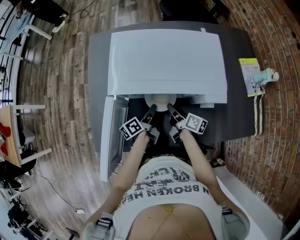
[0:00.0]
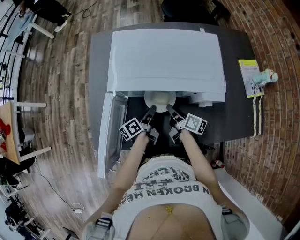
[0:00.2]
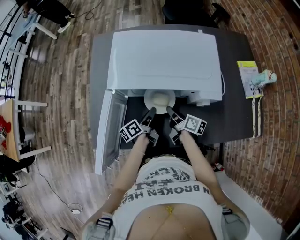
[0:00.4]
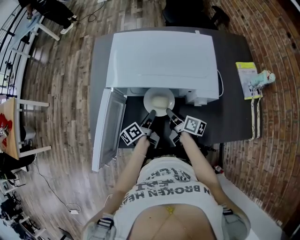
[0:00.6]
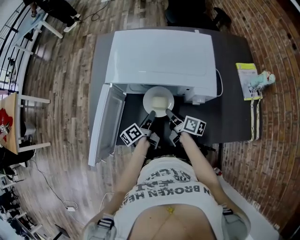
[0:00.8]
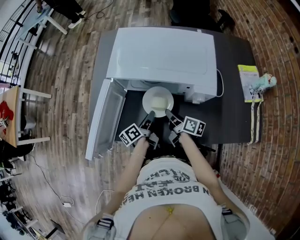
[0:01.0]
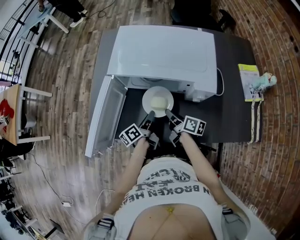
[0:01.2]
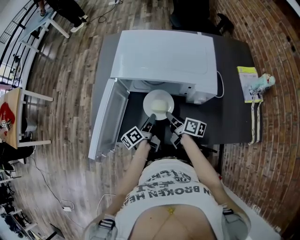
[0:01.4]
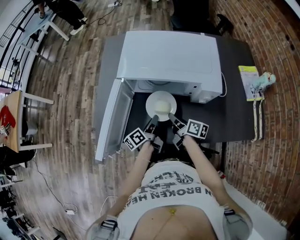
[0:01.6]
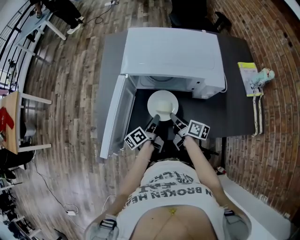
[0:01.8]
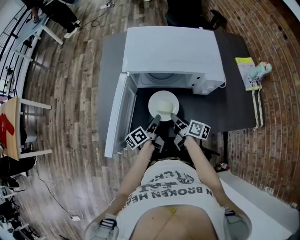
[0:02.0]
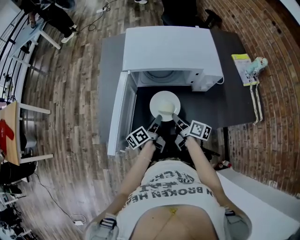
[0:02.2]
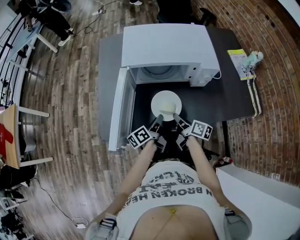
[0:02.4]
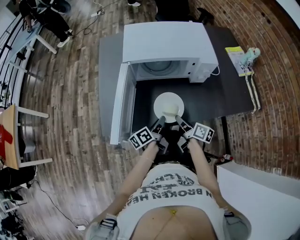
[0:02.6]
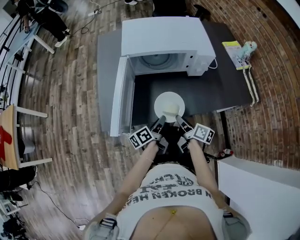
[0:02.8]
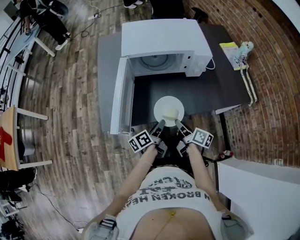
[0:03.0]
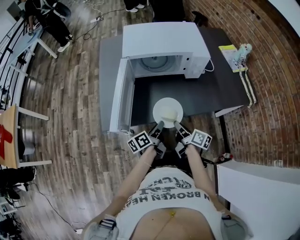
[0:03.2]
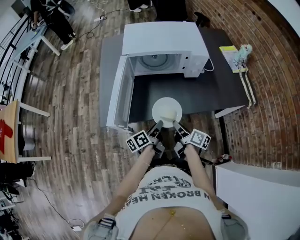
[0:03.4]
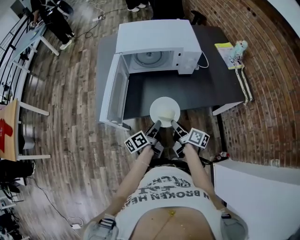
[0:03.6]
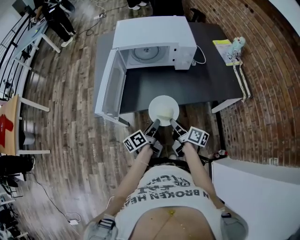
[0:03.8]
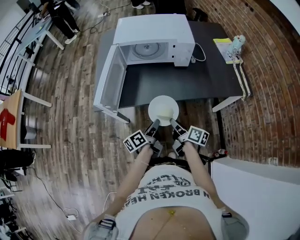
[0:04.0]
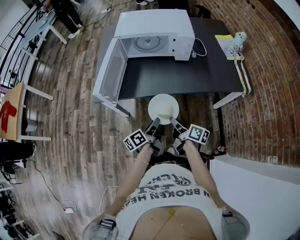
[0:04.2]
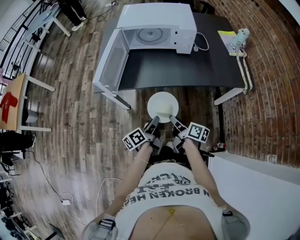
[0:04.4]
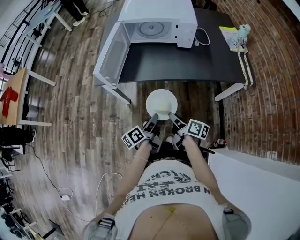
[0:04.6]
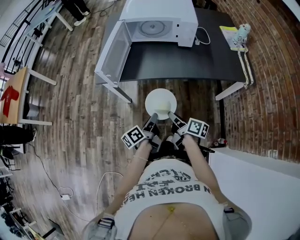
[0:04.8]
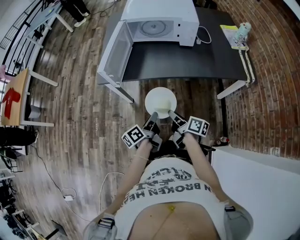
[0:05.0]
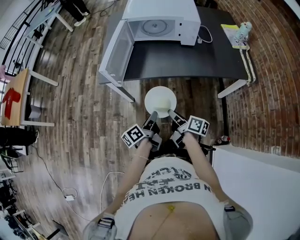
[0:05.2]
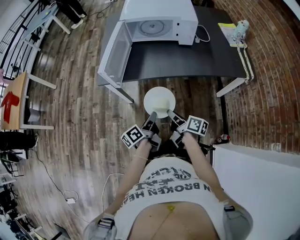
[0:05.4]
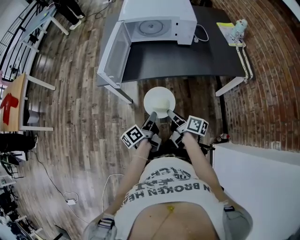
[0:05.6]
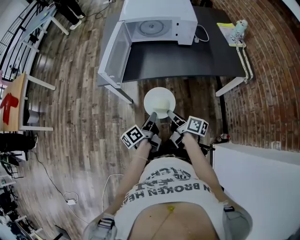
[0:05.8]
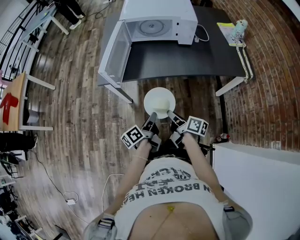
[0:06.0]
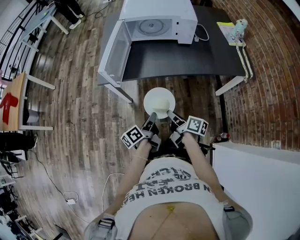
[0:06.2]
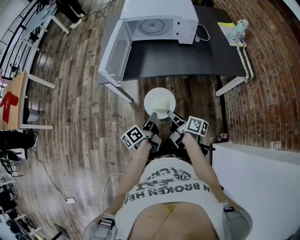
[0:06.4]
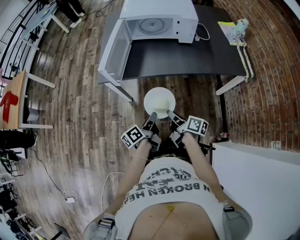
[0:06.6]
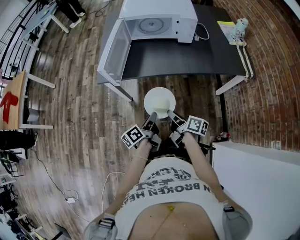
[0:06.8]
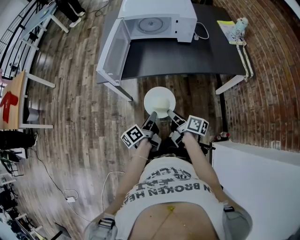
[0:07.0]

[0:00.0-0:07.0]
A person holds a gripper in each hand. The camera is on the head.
0:00.0 to 0:01.4: Both grippers travel together backward, some 10 cm.
0:01.4 to 0:02.8: The grippers both shift backward by roughly 15 cm.
0:02.8 to 0:04.2: Both grippers travel together backward and to the right, roughly 20 cm.
0:04.2 to 0:05.6: Both grippers travel together backward and to the left, roughly 10 cm.
0:05.6 to 0:07.0: Both grippers stay about where they are.

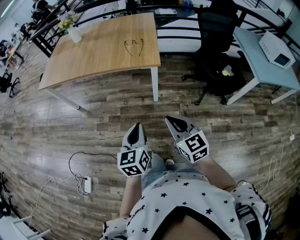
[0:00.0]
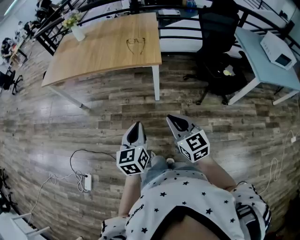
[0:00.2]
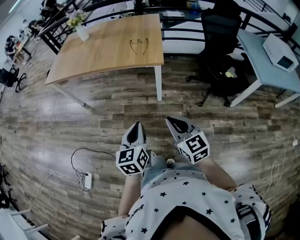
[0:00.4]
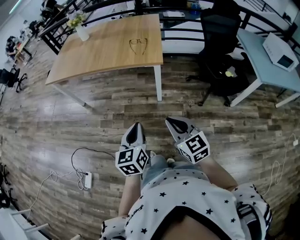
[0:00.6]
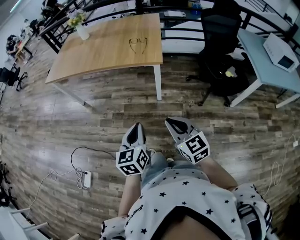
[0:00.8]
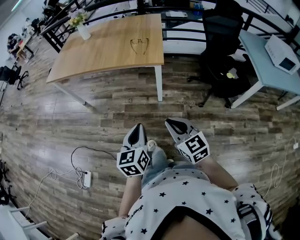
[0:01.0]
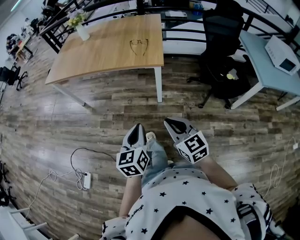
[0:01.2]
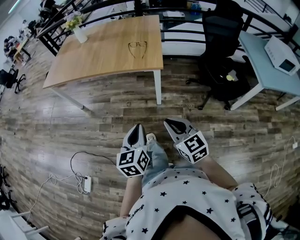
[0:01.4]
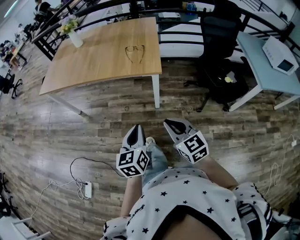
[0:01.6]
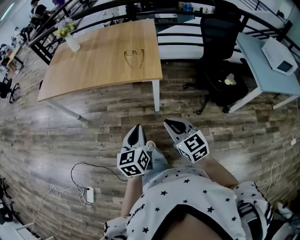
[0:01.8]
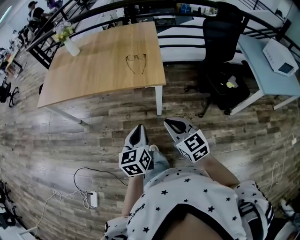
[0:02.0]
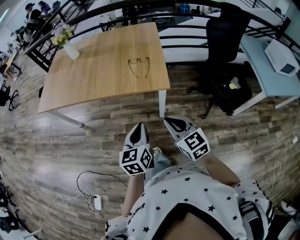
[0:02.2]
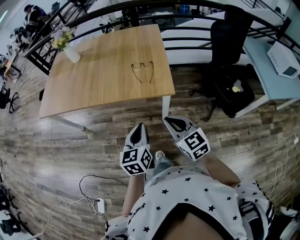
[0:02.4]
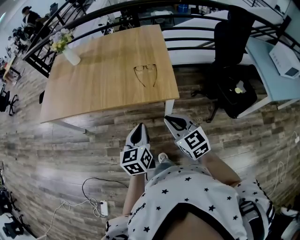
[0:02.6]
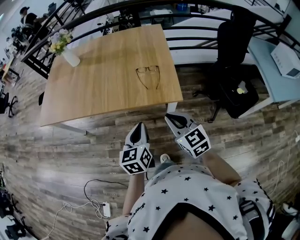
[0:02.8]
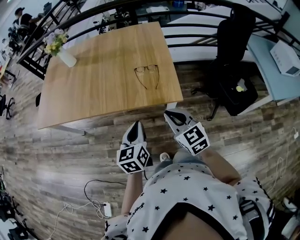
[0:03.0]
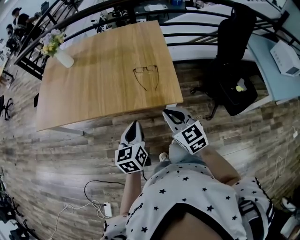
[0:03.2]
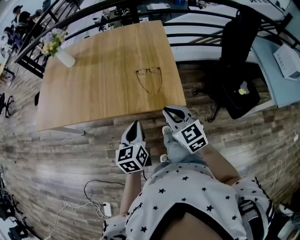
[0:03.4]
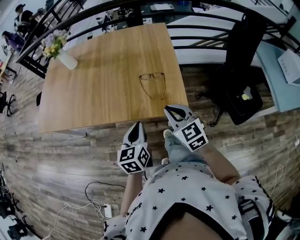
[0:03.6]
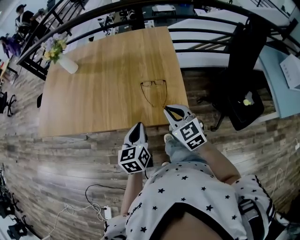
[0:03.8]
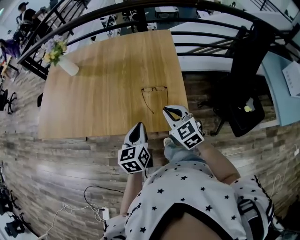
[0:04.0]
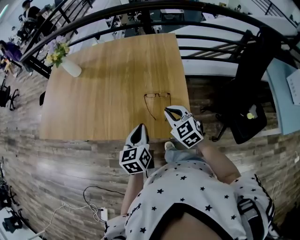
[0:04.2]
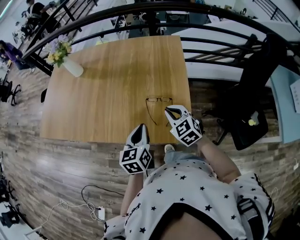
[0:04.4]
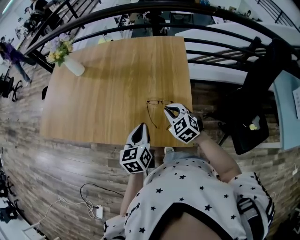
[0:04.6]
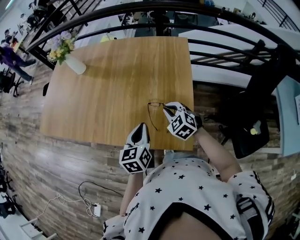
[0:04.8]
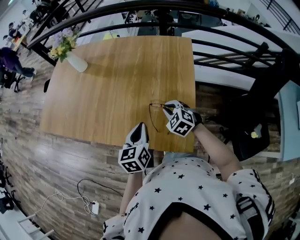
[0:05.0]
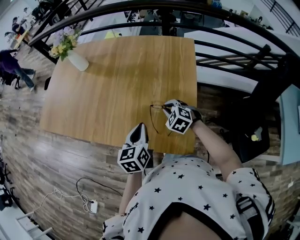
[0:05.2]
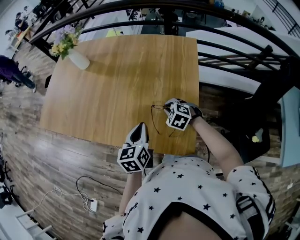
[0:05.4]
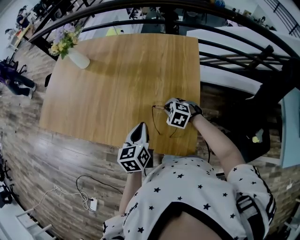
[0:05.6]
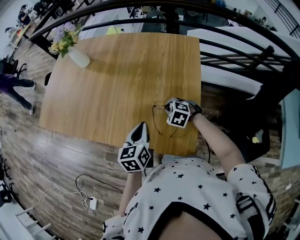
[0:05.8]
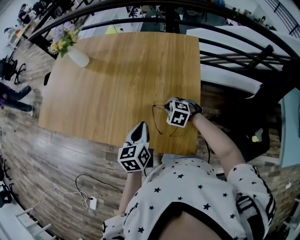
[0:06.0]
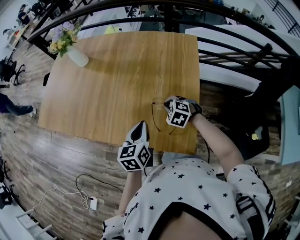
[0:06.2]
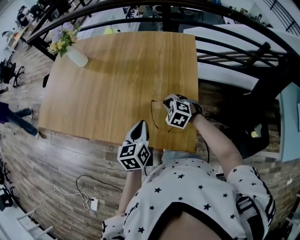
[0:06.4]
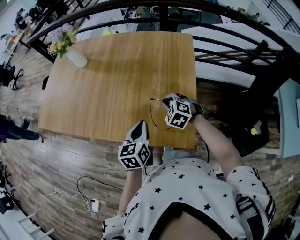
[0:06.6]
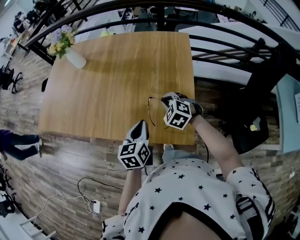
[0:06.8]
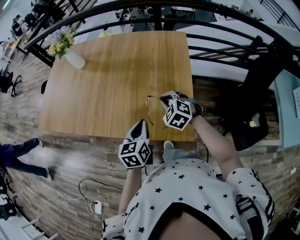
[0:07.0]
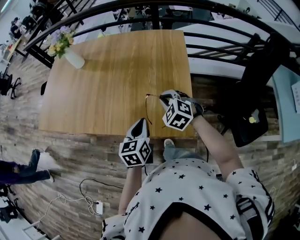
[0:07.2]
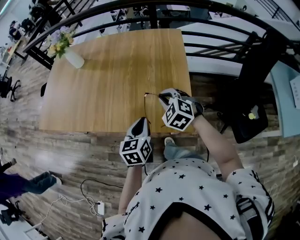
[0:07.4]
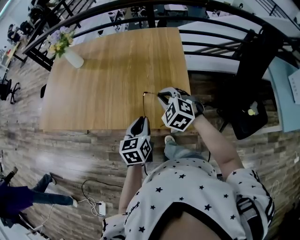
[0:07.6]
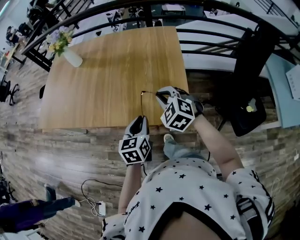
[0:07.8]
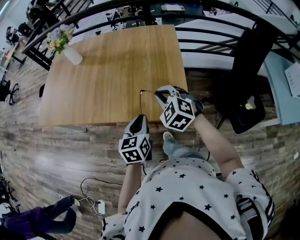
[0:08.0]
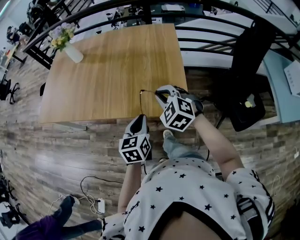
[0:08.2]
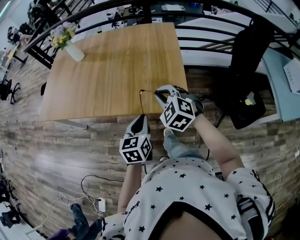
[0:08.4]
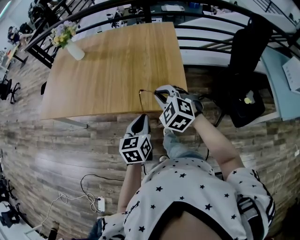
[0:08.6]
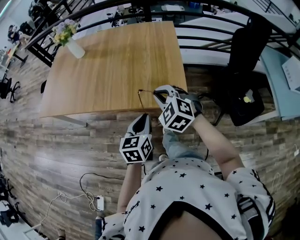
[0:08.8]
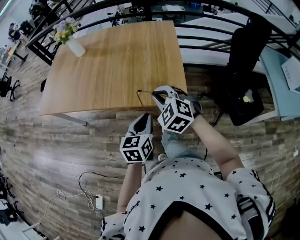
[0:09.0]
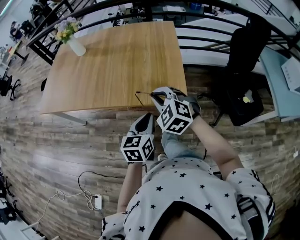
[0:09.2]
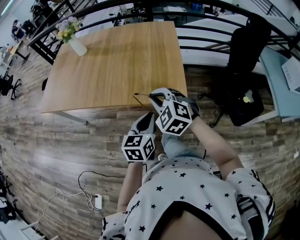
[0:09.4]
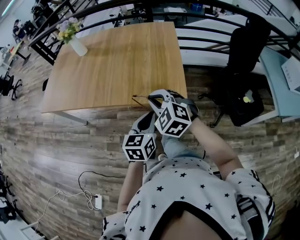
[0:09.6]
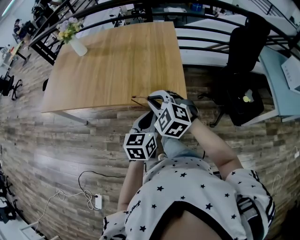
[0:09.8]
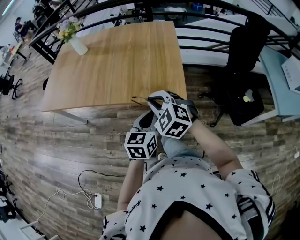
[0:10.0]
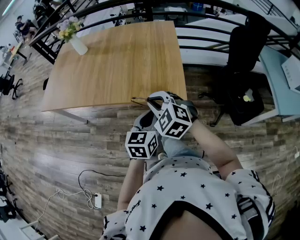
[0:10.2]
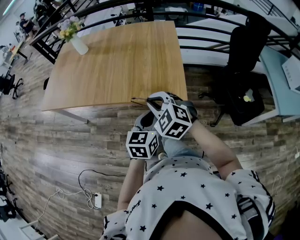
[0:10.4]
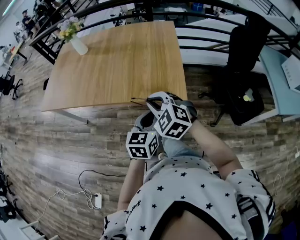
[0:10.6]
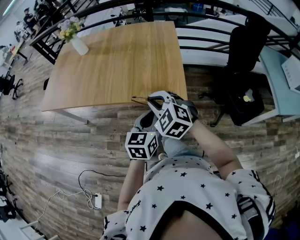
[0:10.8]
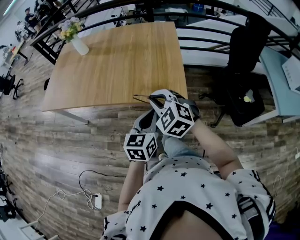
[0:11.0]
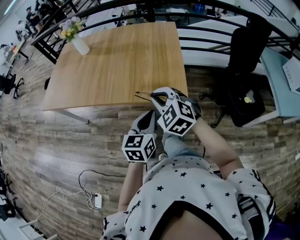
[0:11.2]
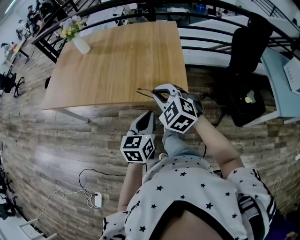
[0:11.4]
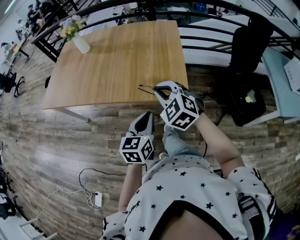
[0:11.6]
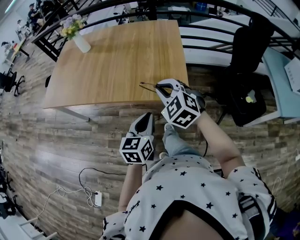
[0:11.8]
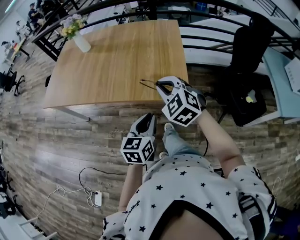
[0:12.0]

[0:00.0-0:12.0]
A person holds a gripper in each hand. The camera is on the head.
0:00.0 to 0:01.6: The left gripper shifts some 5 cm forward.
0:01.6 to 0:03.0: The grippers both shift forward by approximately 30 cm.
0:03.0 to 0:04.4: The two grippers go roughly 25 cm forward.
0:04.4 to 0:06.0: The right gripper heads downward and forward, covering roughly 15 cm, and rotates roughly 40 degrees. The left gripper is displaced forward by roughly 5 cm.
0:06.0 to 0:07.6: The left gripper moves backward, approximately 10 cm. The right gripper moves upward and backward, about 20 cm, and turns by roughly 30 degrees.
0:07.6 to 0:09.0: The two grippers go roughly 15 cm backward.
0:09.0 to 0:10.4: The left gripper shifts by about 5 cm. The right gripper travels backward by some 5 cm.
0:10.4 to 0:12.0: The right gripper shifts by roughly 5 cm.

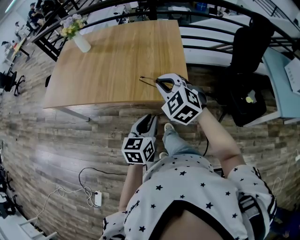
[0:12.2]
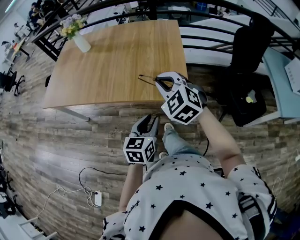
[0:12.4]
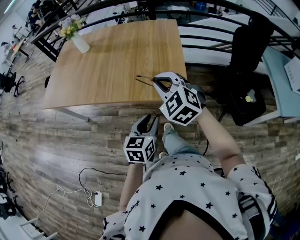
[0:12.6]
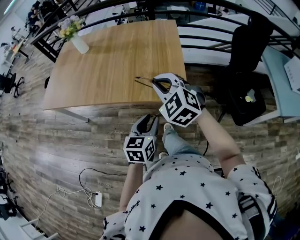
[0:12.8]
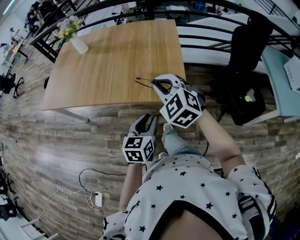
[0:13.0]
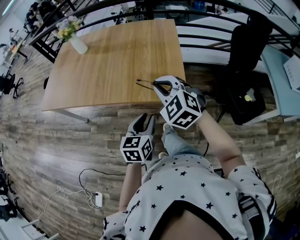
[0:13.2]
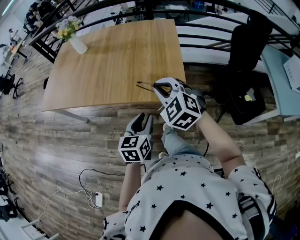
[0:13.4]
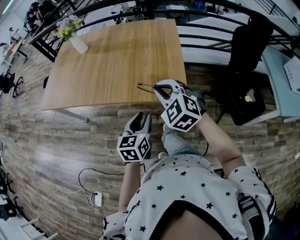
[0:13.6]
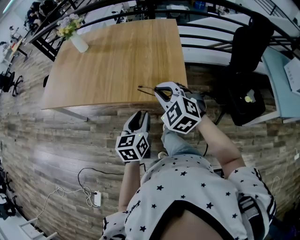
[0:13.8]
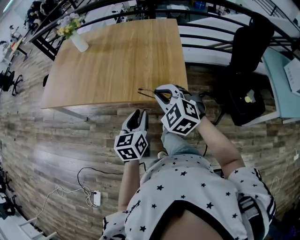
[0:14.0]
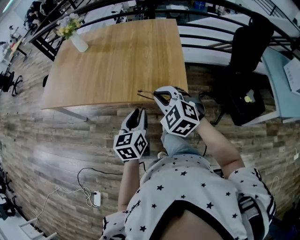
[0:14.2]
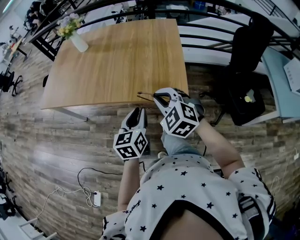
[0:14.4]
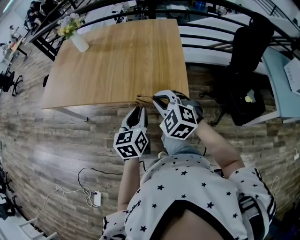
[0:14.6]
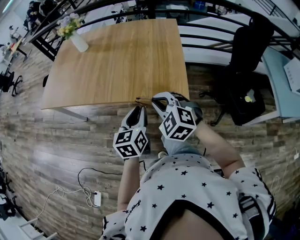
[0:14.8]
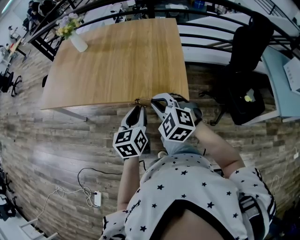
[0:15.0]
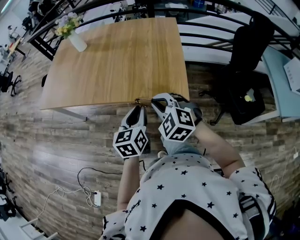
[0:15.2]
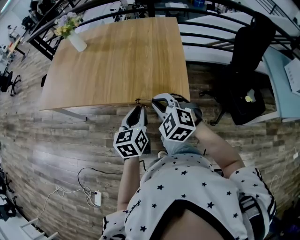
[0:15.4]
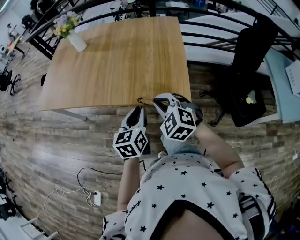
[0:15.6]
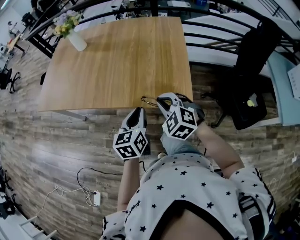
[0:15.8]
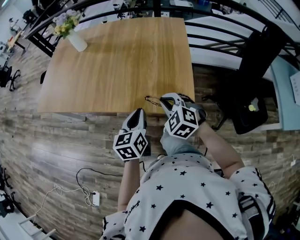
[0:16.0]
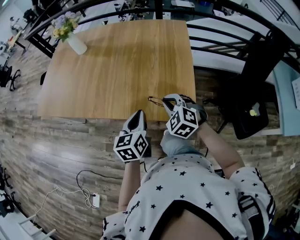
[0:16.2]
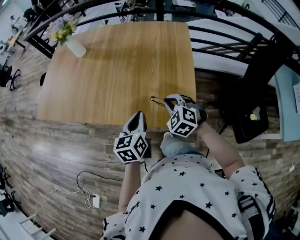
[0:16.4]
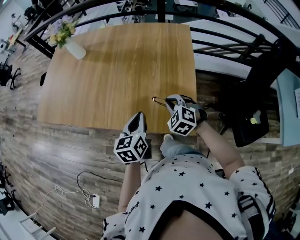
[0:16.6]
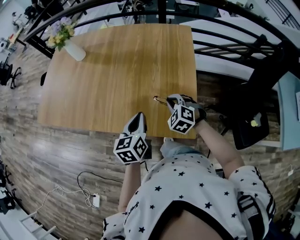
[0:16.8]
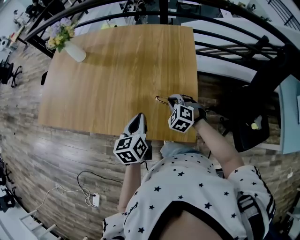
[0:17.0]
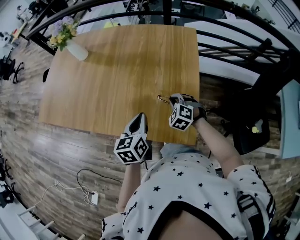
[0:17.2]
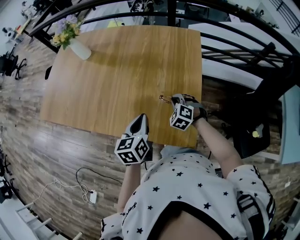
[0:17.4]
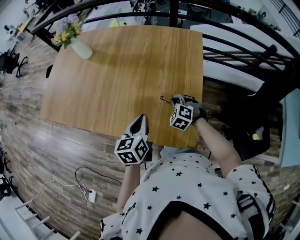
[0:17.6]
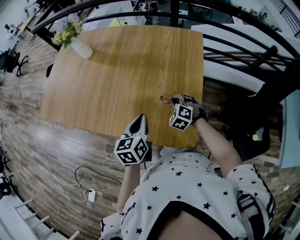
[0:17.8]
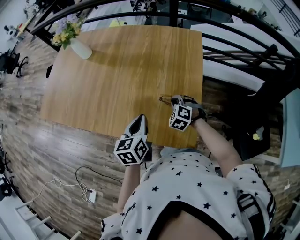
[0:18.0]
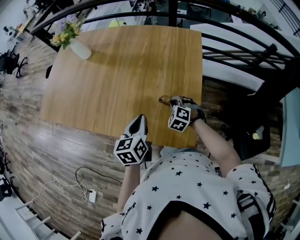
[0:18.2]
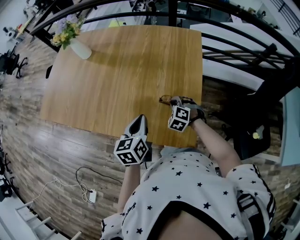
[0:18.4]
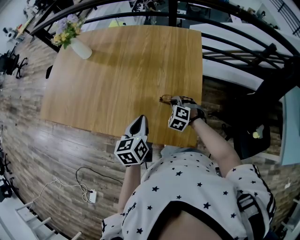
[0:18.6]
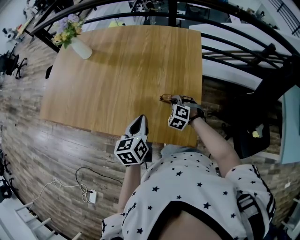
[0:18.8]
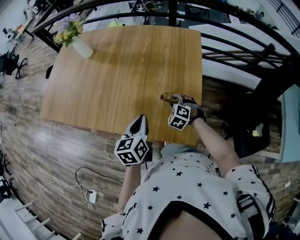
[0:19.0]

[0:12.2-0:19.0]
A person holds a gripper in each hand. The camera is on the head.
0:12.2 to 0:13.6: There are only small adjustments of the grippers.
0:13.6 to 0:15.0: The right gripper shifts by some 5 cm.
0:15.0 to 0:16.2: The left gripper moves forward, some 10 cm. The right gripper travels forward and downward by some 15 cm.
0:16.2 to 0:17.6: The left gripper travels forward by roughly 10 cm. Meanwhile the right gripper travels forward and downward by about 20 cm.
0:17.6 to 0:19.0: The right gripper opens.
